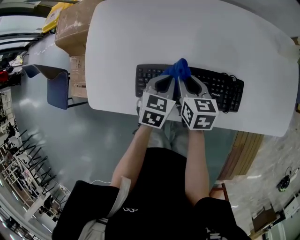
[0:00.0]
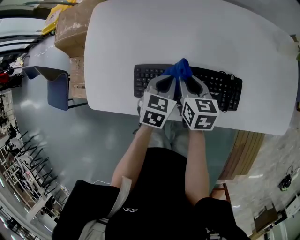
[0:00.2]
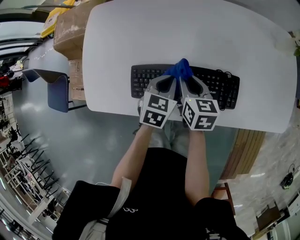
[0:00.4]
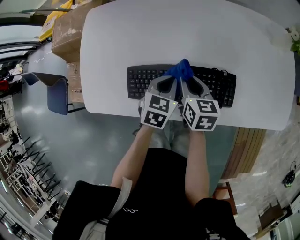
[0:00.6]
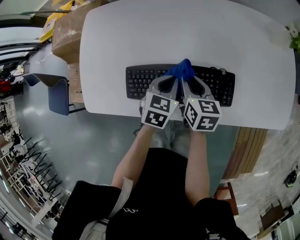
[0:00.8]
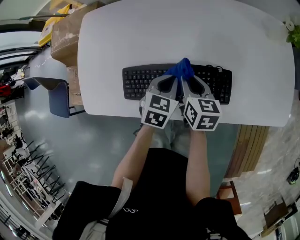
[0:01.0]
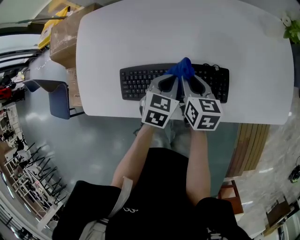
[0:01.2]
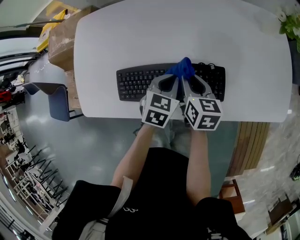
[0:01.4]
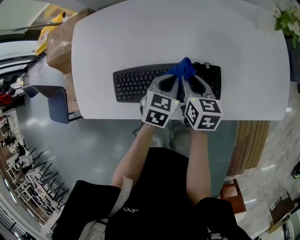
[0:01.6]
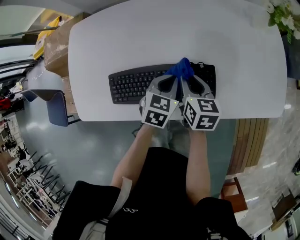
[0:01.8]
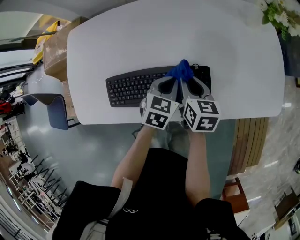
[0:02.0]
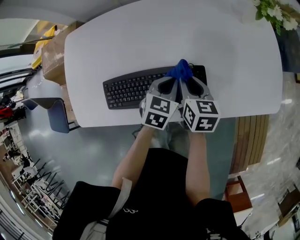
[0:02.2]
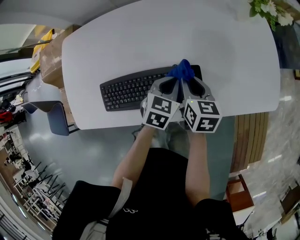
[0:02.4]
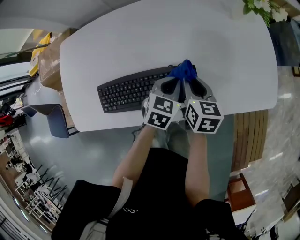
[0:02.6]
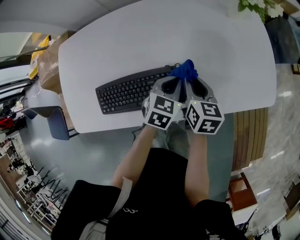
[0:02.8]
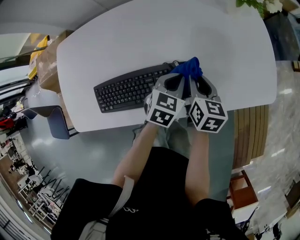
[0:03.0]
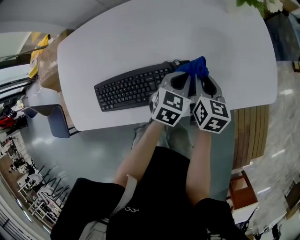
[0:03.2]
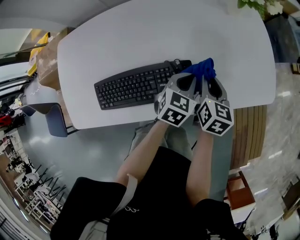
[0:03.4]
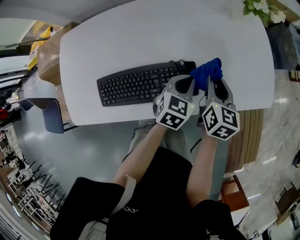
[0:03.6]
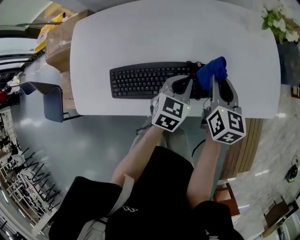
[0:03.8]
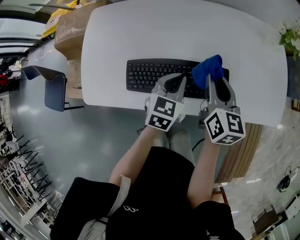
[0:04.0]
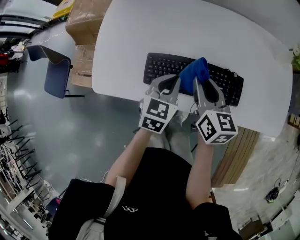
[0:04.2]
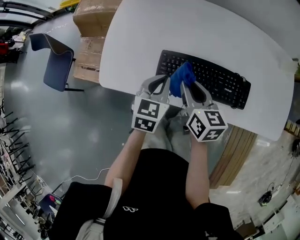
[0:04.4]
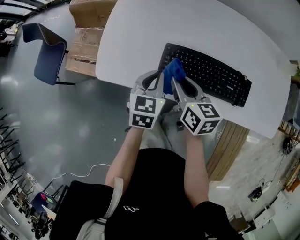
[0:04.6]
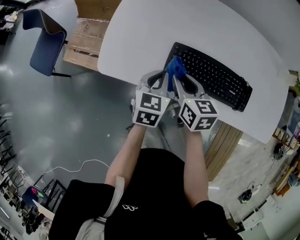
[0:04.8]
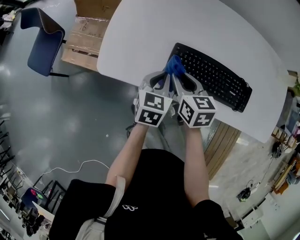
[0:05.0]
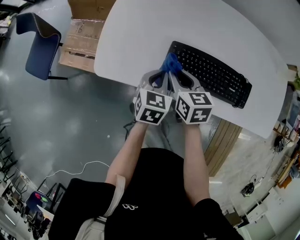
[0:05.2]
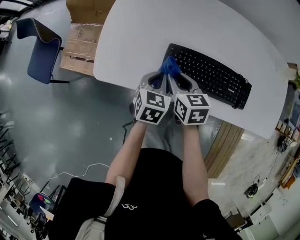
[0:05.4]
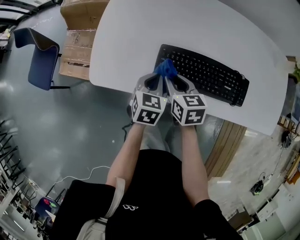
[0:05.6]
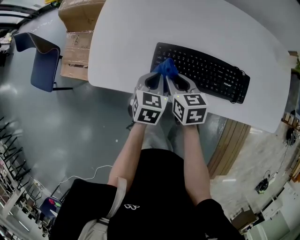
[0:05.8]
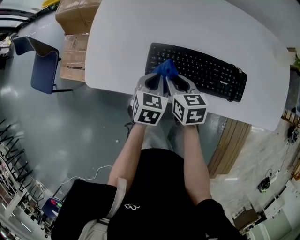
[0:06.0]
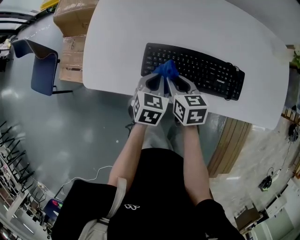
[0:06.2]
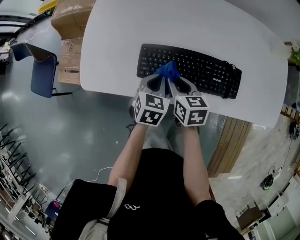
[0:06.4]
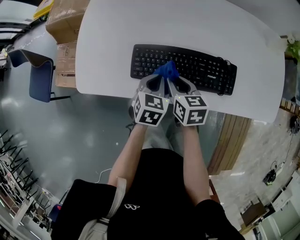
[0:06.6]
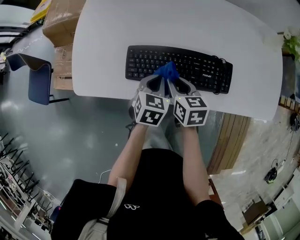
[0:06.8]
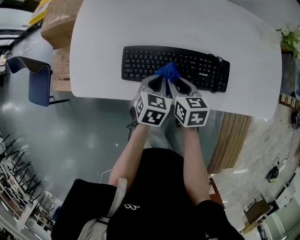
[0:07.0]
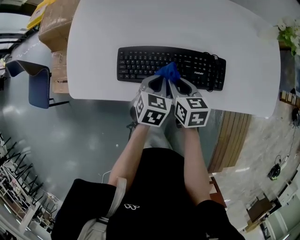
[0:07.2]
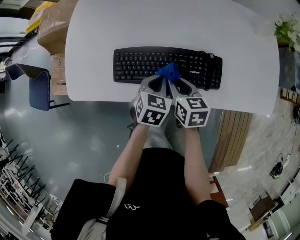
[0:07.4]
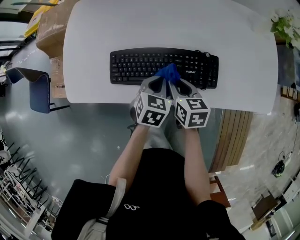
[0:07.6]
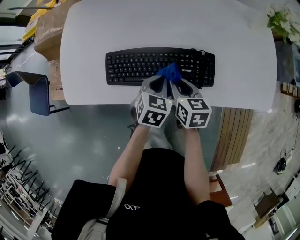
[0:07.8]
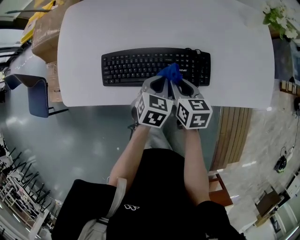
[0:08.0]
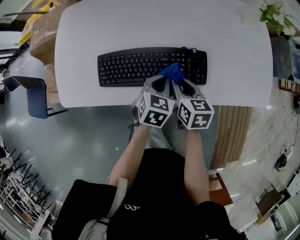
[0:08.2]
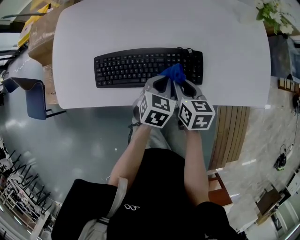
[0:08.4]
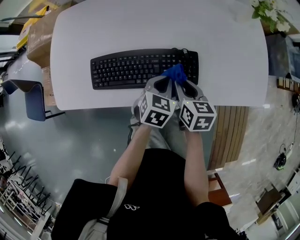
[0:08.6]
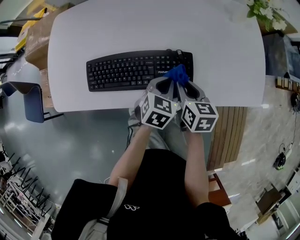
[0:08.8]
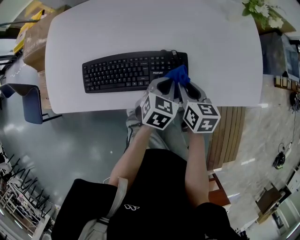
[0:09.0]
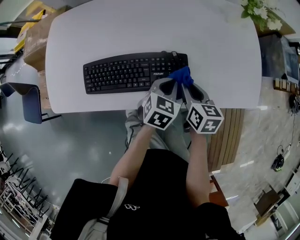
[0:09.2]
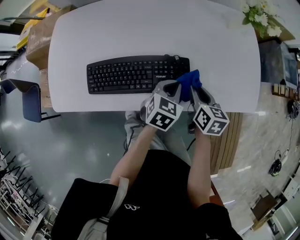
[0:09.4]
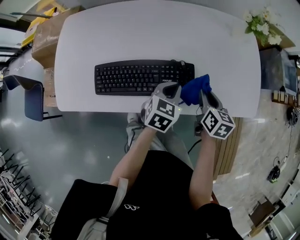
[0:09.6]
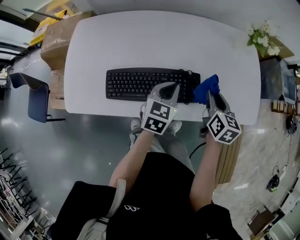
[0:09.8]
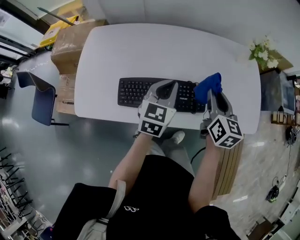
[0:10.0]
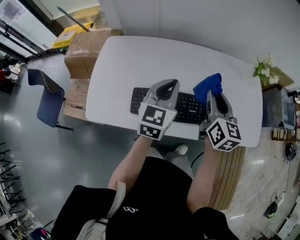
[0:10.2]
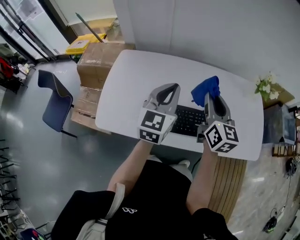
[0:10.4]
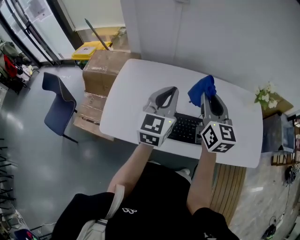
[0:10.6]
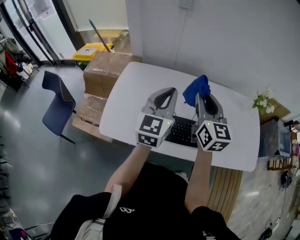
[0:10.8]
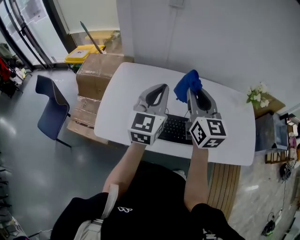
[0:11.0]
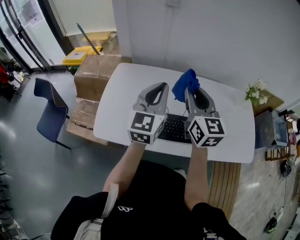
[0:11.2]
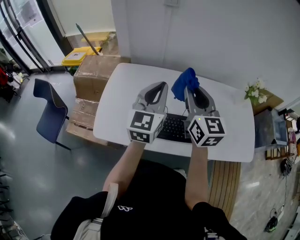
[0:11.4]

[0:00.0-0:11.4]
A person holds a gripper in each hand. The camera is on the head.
0:00.0 to 0:01.4: The two grippers go about 10 cm to the right.
0:01.4 to 0:02.8: Both grippers move to the right, roughly 15 cm.
0:02.8 to 0:04.2: The right gripper moves roughly 25 cm, and rotates roughly 20 degrees, while the left gripper moves about 25 cm, and swivels roughly 20 degrees.
0:04.2 to 0:05.6: The two grippers go some 20 cm to the left and downward. The right gripper swivels about 20 degrees.
0:05.6 to 0:07.2: The two grippers go about 15 cm to the right.
0:07.2 to 0:08.6: Both grippers travel together to the right, some 15 cm.
0:08.6 to 0:10.0: The right gripper shifts approximately 20 cm upward and forward, and turns by about 20 degrees; the left gripper travels upward and to the left by about 20 cm, and turns by about 30 degrees.
0:10.0 to 0:11.4: The left gripper is displaced upward and to the left by about 25 cm, and rotates about 30 degrees, while the right gripper moves to the left and upward, roughly 30 cm, and changes its angle by about 30 degrees.

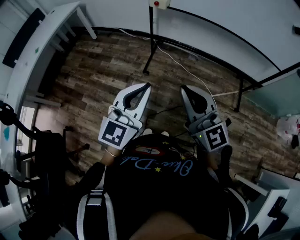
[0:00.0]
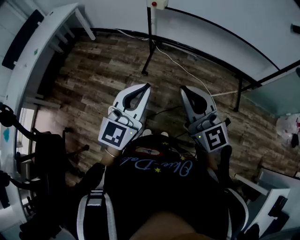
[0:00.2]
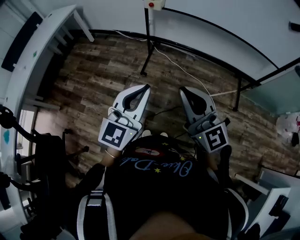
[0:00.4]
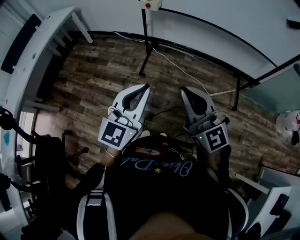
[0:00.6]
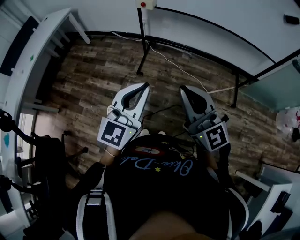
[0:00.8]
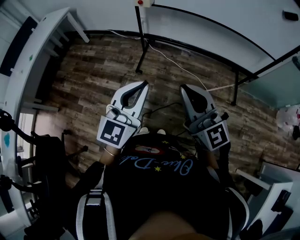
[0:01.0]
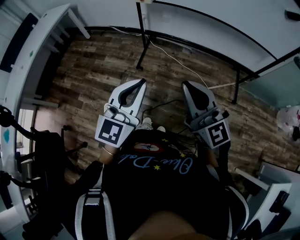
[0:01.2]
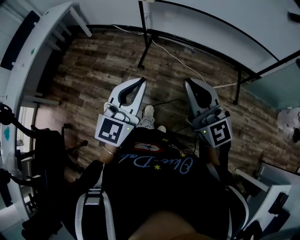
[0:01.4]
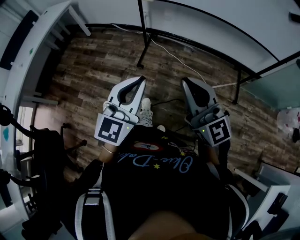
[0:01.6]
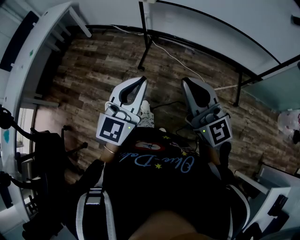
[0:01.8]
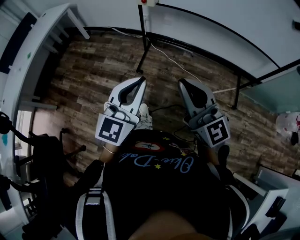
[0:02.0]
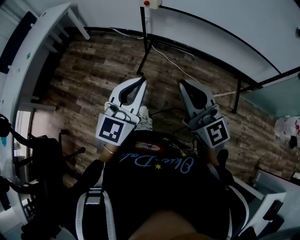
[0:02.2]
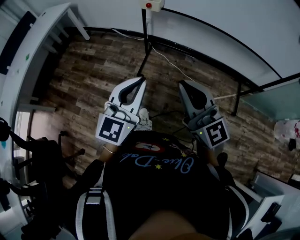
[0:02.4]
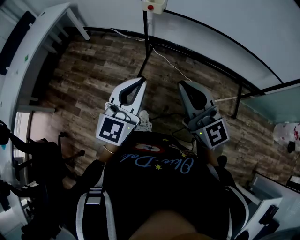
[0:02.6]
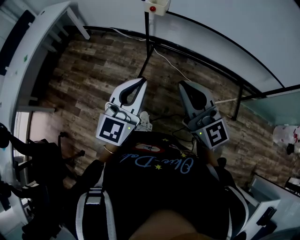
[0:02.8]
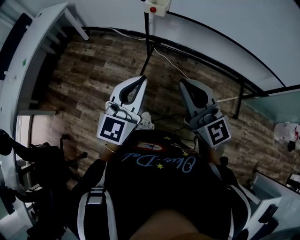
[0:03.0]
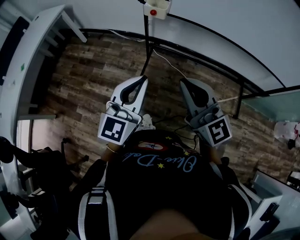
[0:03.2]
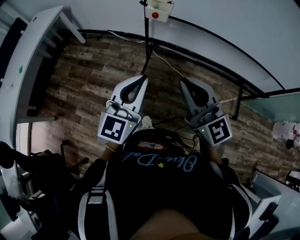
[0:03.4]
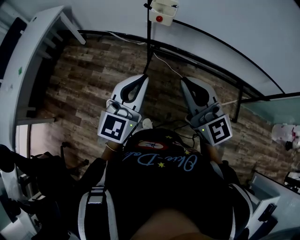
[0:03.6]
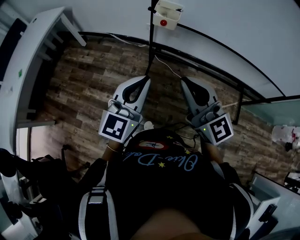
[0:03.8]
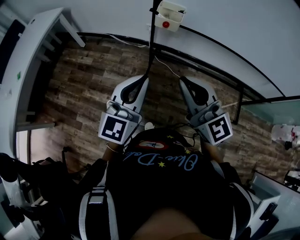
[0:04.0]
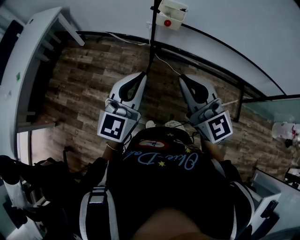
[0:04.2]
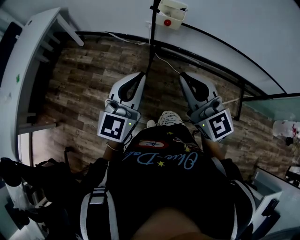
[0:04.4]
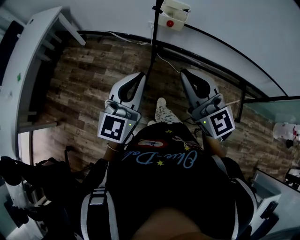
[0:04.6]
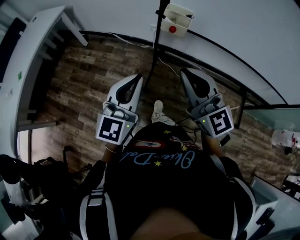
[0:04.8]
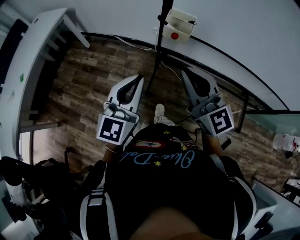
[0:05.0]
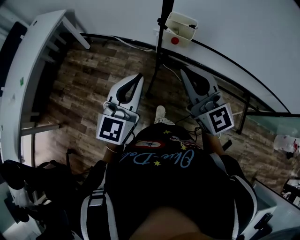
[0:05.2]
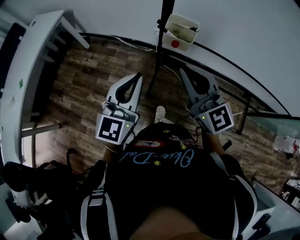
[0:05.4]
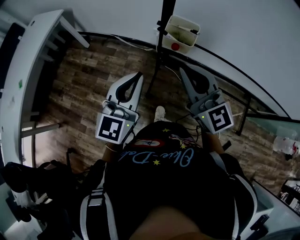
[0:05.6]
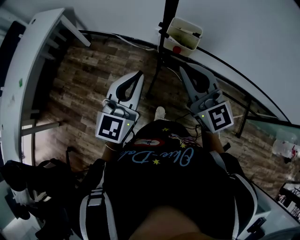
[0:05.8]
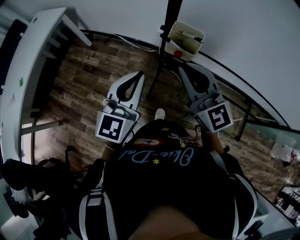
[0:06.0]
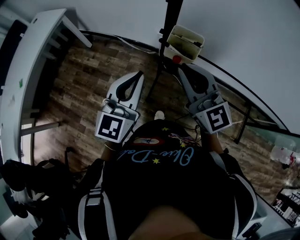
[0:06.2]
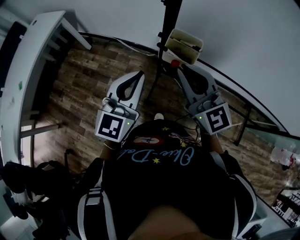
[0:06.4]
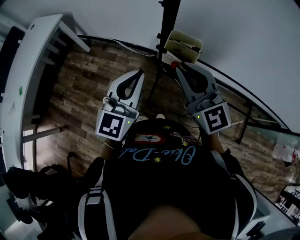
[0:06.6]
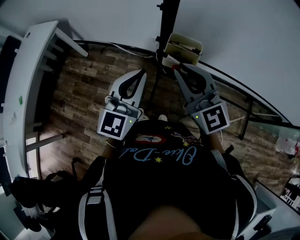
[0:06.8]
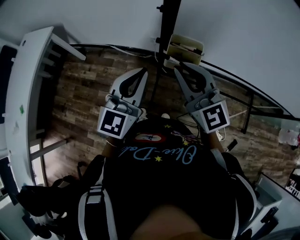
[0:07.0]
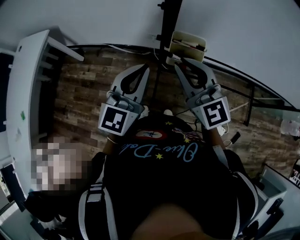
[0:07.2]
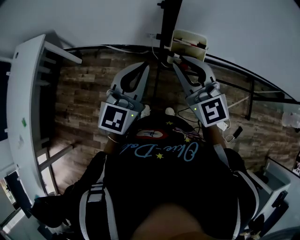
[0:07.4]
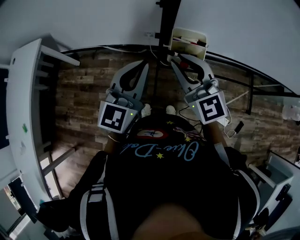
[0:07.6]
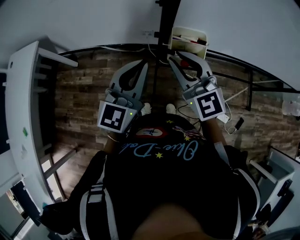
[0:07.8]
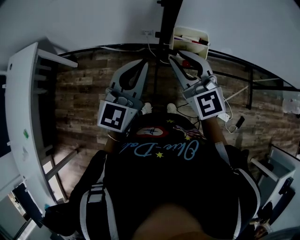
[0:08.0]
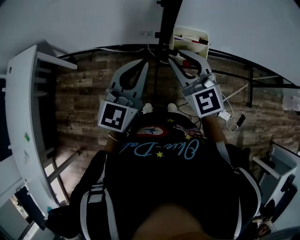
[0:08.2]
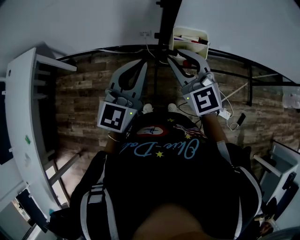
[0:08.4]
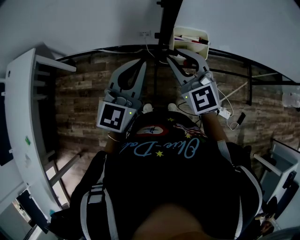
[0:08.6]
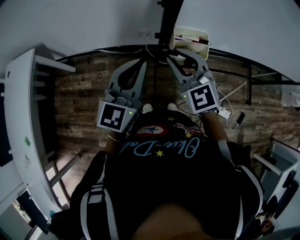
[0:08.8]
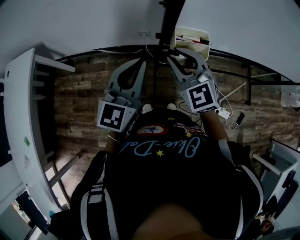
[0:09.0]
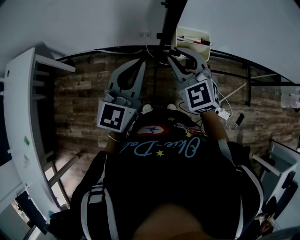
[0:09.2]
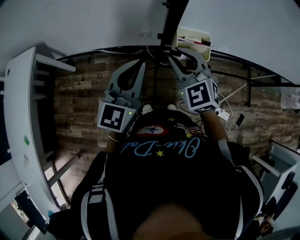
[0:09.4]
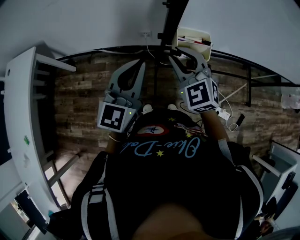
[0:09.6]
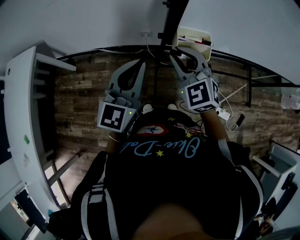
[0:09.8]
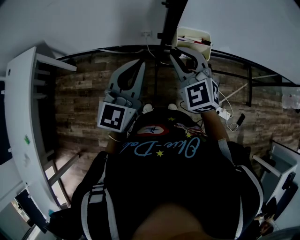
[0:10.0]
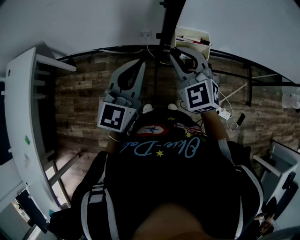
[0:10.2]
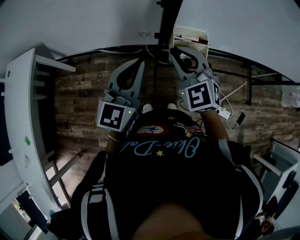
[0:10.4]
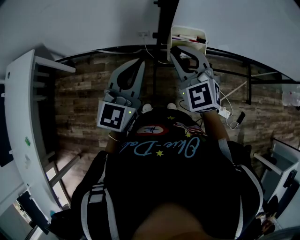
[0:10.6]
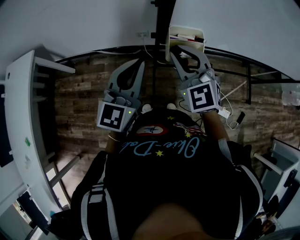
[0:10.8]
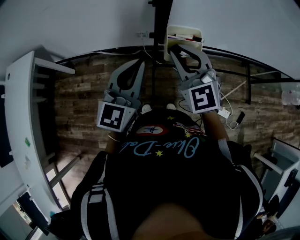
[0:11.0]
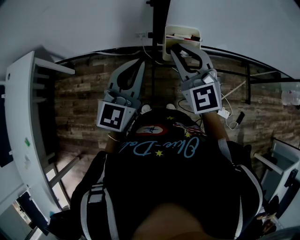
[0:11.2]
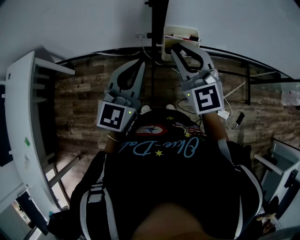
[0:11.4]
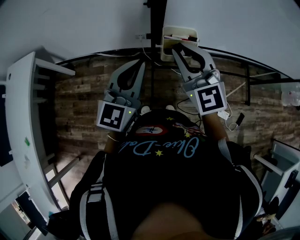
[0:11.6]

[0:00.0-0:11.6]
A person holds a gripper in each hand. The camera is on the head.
0:00.0 to 0:01.4: The right gripper shifts roughly 5 cm to the right.
0:01.4 to 0:02.8: Both grippers travel together forward, about 15 cm.
0:02.8 to 0:04.4: Both grippers travel together forward and to the left, approximately 15 cm.
0:04.4 to 0:05.8: Both grippers travel together forward, some 15 cm.
0:05.8 to 0:07.2: Both grippers move forward, roughly 10 cm.
0:07.2 to 0:08.8: The right gripper moves downward, roughly 5 cm, and turns by about 20 degrees.
0:08.8 to 0:10.2: There are only small adjustments of the grippers.
0:10.2 to 0:11.6: The right gripper shifts some 5 cm upward, and changes its angle by roughly 20 degrees.

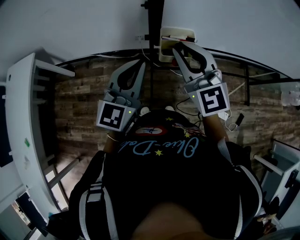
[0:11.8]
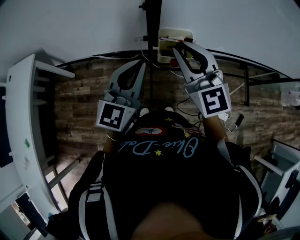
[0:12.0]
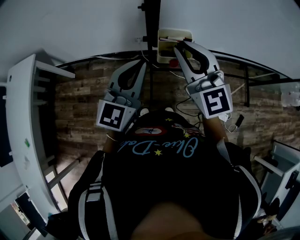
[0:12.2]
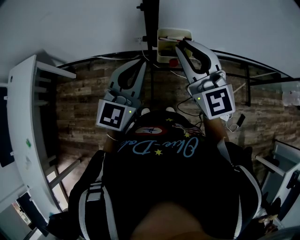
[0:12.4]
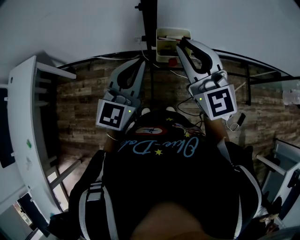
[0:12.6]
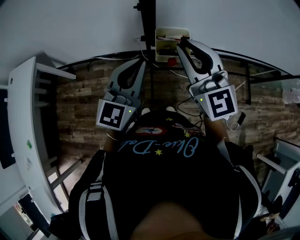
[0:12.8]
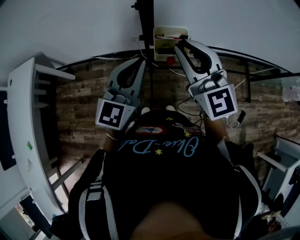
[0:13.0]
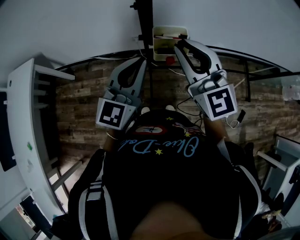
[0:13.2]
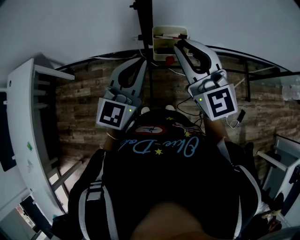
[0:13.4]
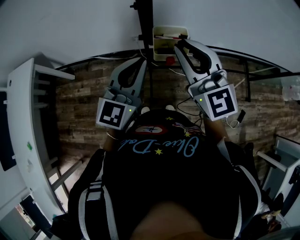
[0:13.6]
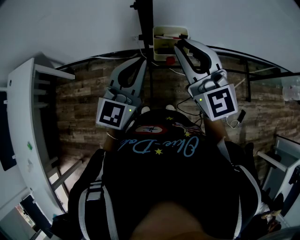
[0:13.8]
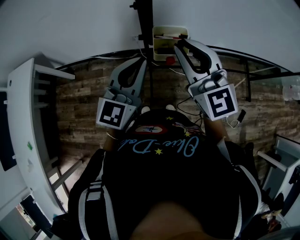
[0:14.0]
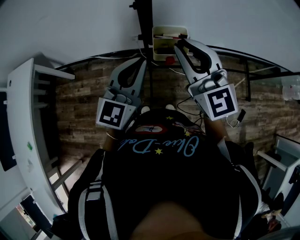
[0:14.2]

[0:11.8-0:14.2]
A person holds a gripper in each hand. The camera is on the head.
0:11.8 to 0:13.0: The grippers stay close to where they were, moving slightly.
0:13.0 to 0:14.2: The two grippers keep their place.
